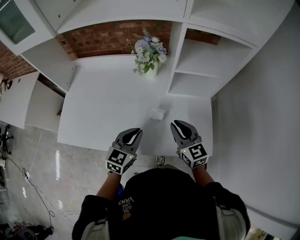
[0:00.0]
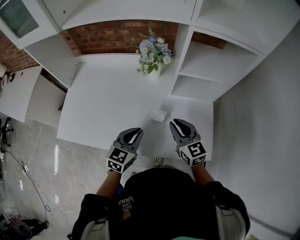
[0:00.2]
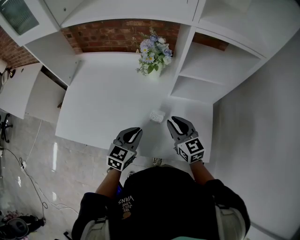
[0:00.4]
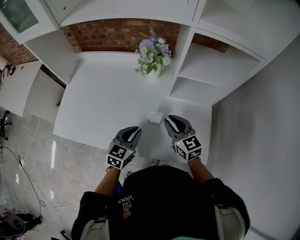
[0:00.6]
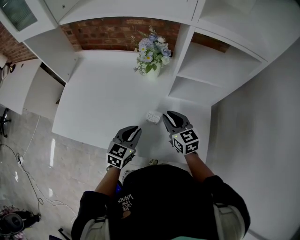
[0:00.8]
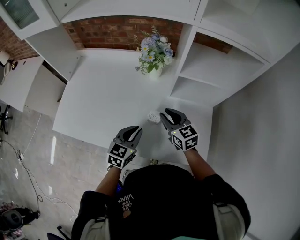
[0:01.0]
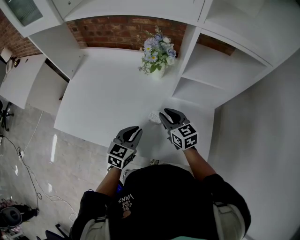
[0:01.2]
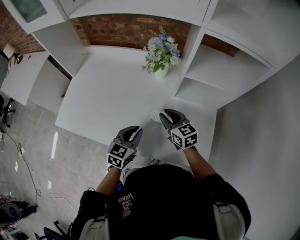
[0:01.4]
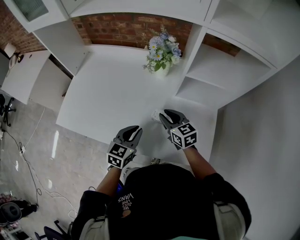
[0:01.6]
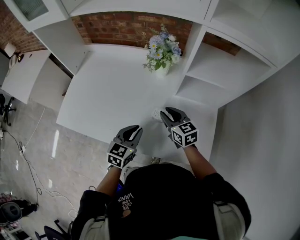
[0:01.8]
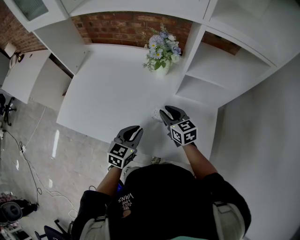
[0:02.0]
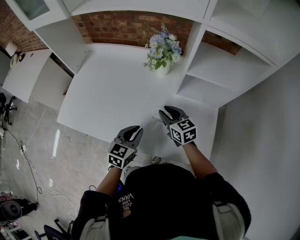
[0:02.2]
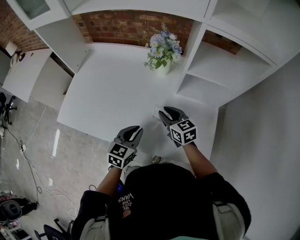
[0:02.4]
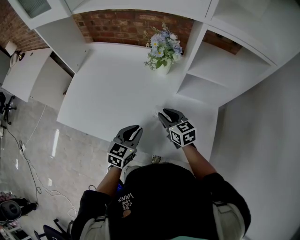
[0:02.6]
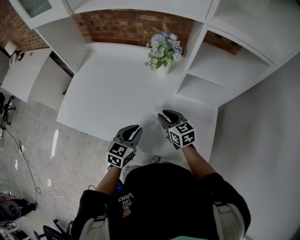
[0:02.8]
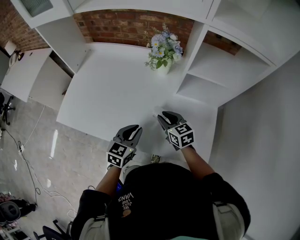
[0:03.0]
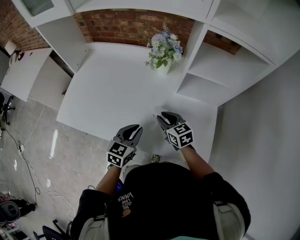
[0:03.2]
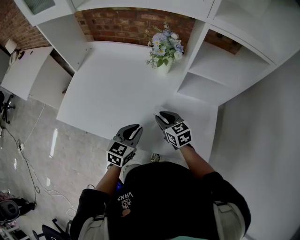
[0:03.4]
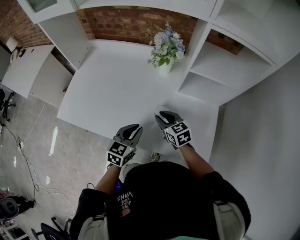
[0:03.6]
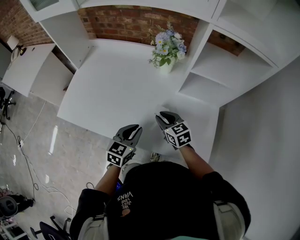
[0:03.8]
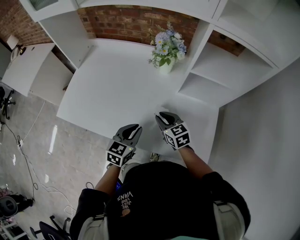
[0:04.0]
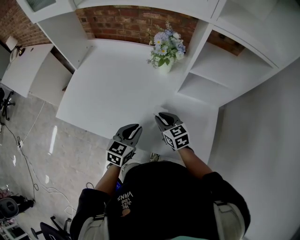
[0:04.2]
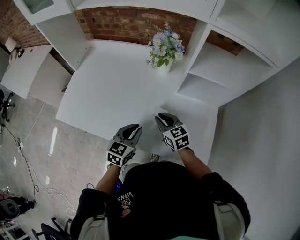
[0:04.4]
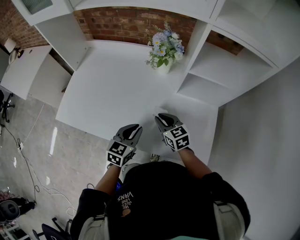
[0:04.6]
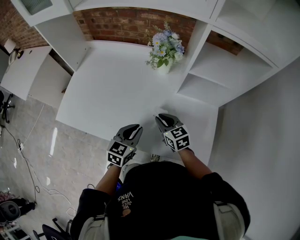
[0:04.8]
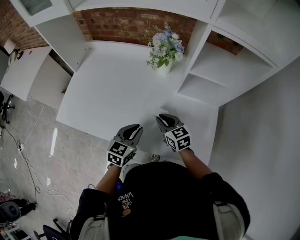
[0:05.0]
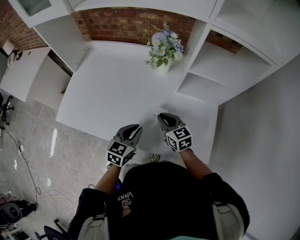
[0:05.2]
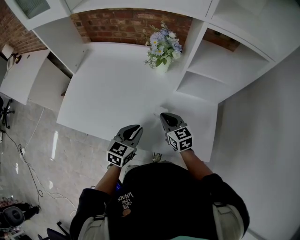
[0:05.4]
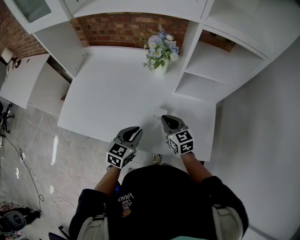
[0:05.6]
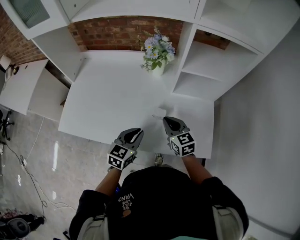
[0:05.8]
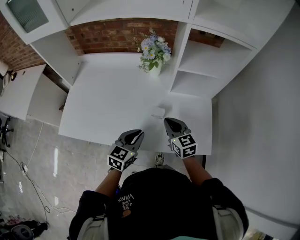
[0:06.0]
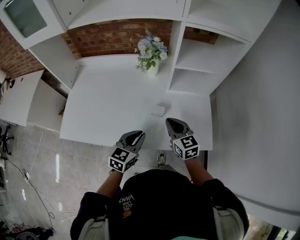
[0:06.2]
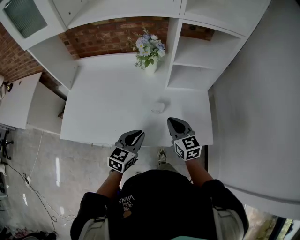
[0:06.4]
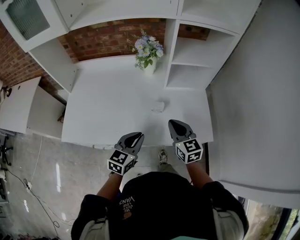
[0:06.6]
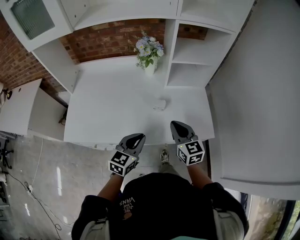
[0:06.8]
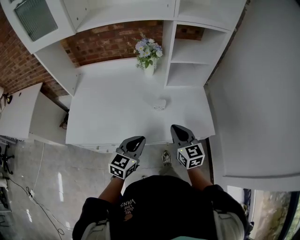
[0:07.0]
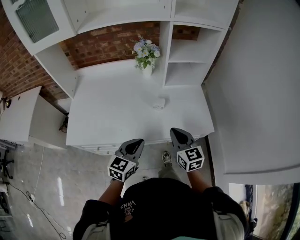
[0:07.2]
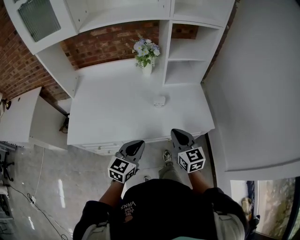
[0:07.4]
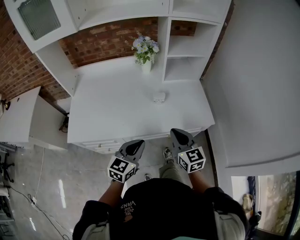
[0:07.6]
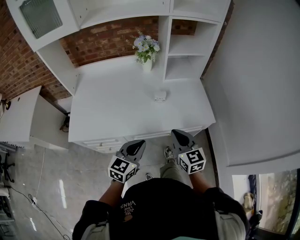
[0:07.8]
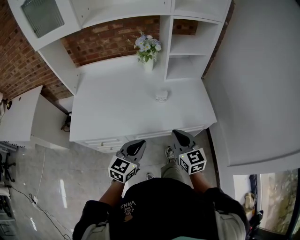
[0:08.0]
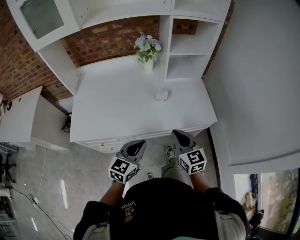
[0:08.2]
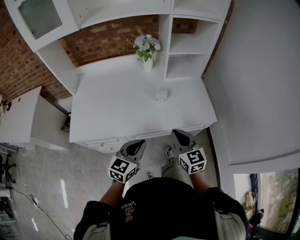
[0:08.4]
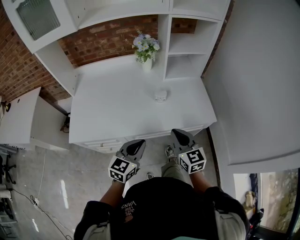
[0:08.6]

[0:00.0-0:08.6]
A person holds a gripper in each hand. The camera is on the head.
0:00.0 to 0:01.4: The right gripper goes approximately 10 cm forward and downward. Meanwhile the left gripper is displaced downward by about 5 cm.
0:01.4 to 0:02.8: The grippers stay close to where they were, moving slightly.
0:02.8 to 0:04.4: The grippers move only a little.
0:04.4 to 0:05.8: The right gripper changes place by some 5 cm.
0:05.8 to 0:07.2: The two grippers go some 15 cm backward. The right gripper rotates about 20 degrees.
0:07.2 to 0:08.6: The right gripper is displaced backward by approximately 5 cm.

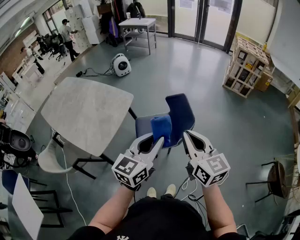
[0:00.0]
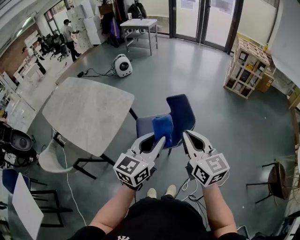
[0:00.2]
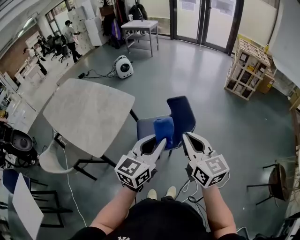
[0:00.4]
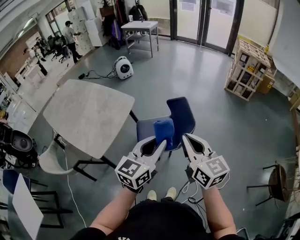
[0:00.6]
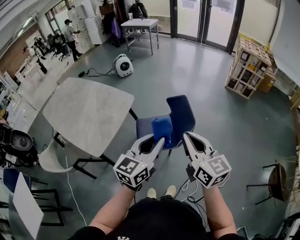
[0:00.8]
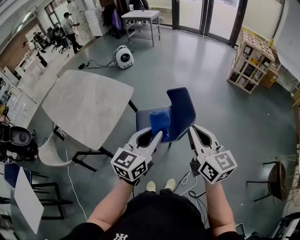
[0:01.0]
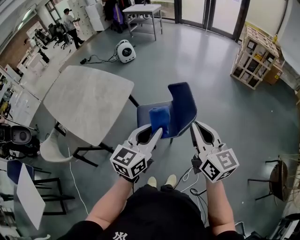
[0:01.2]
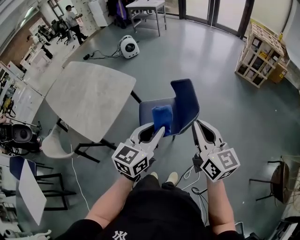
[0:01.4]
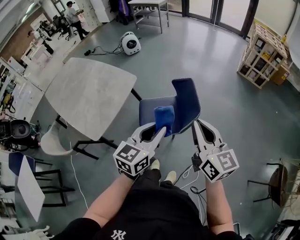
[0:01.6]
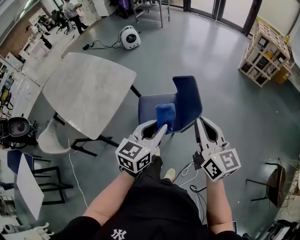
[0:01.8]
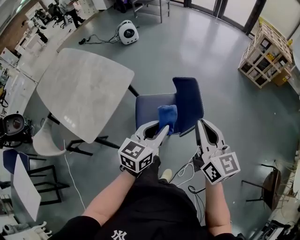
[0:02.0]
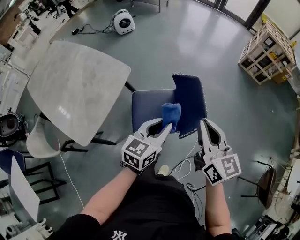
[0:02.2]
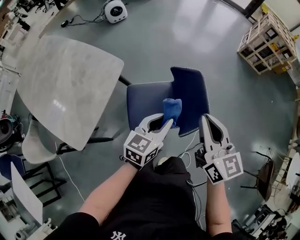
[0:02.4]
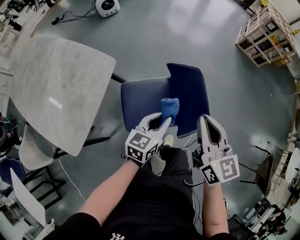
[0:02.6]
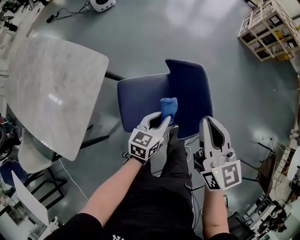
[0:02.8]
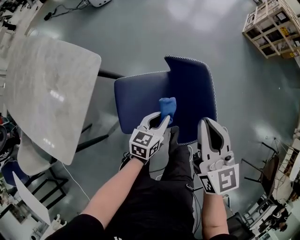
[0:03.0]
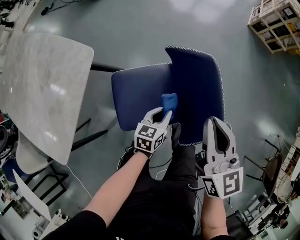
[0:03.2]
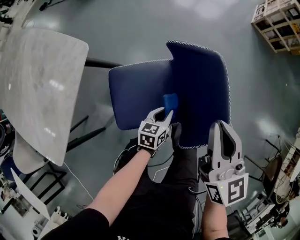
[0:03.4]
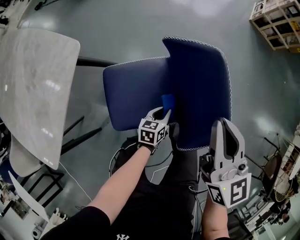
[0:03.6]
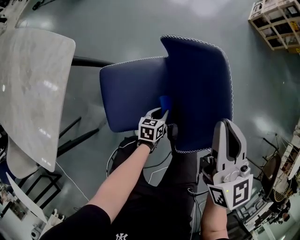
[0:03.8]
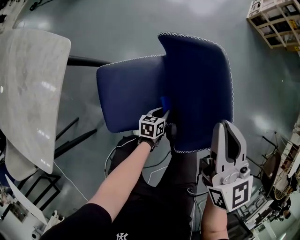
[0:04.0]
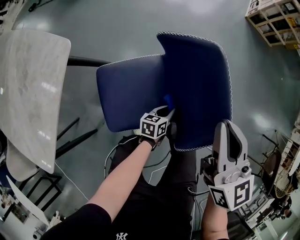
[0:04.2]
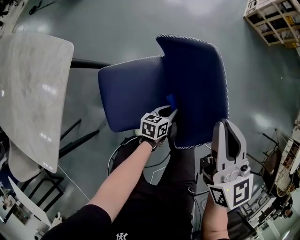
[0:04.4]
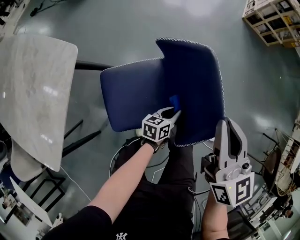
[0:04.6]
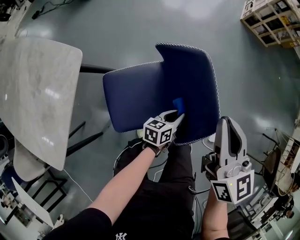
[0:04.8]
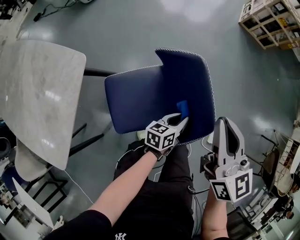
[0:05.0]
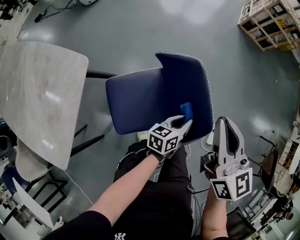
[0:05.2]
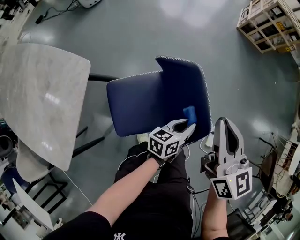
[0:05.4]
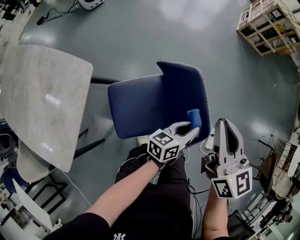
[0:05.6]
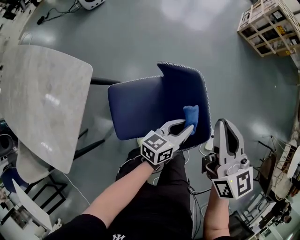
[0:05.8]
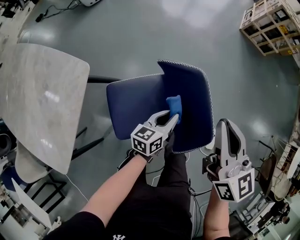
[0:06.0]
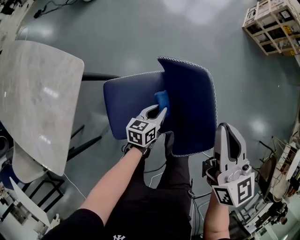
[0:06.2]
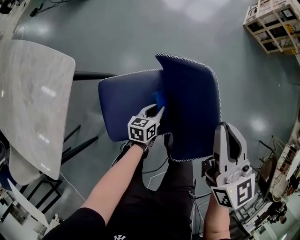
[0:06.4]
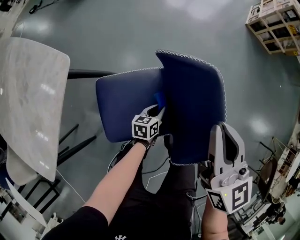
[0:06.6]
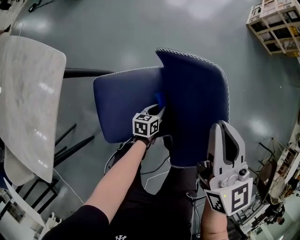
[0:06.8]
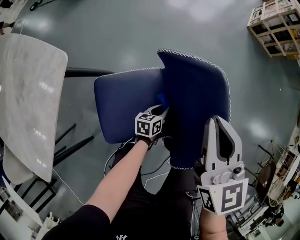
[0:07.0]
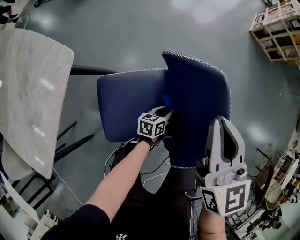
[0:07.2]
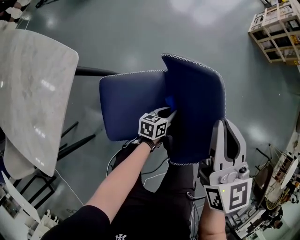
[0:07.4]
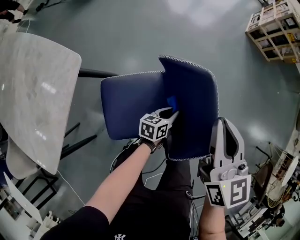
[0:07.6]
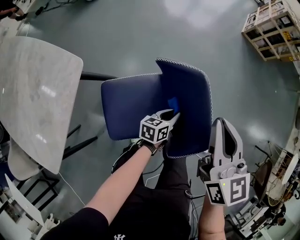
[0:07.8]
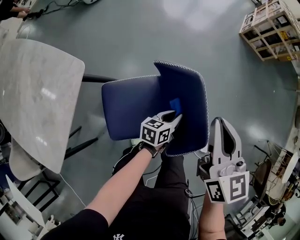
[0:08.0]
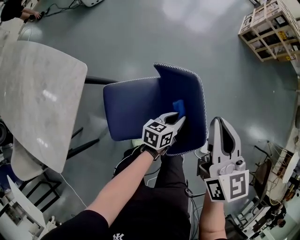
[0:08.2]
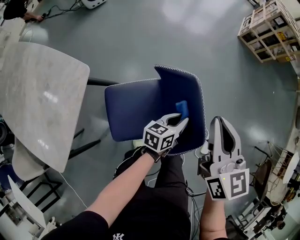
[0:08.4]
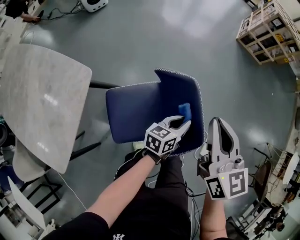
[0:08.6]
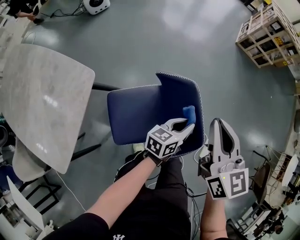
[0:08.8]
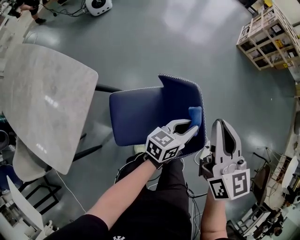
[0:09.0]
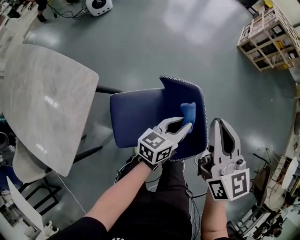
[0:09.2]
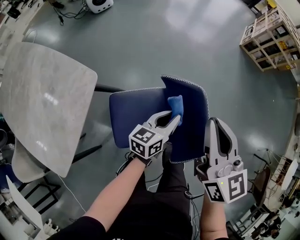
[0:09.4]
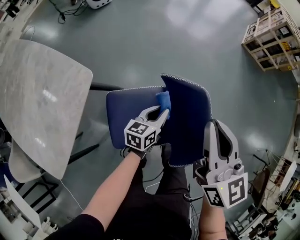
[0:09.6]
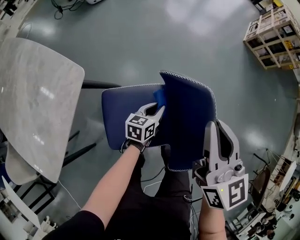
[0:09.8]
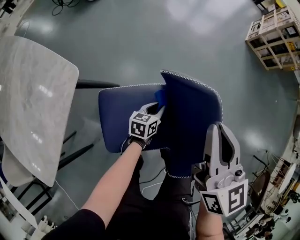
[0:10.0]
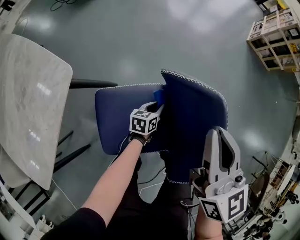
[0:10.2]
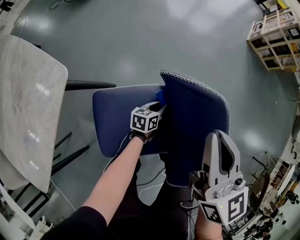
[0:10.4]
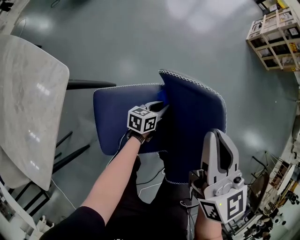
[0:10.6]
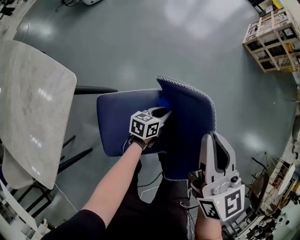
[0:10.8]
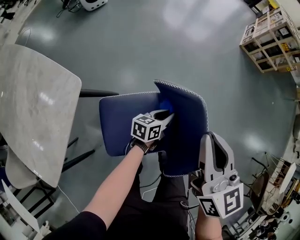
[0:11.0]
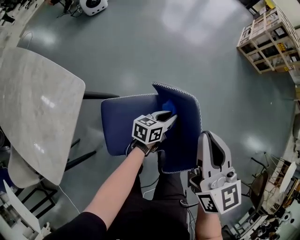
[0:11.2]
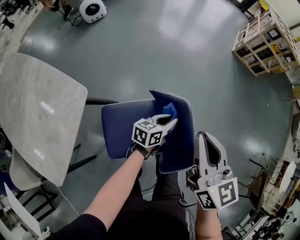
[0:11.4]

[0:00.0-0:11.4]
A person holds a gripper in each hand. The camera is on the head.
0:00.0 to 0:01.4: The left gripper shifts by roughly 5 cm, while the right gripper shifts some 5 cm to the right.
0:01.4 to 0:02.8: The right gripper travels forward and downward by about 30 cm, while the left gripper is displaced downward and forward by about 40 cm, and changes its angle by approximately 20 degrees.
0:02.8 to 0:04.2: The left gripper goes some 30 cm downward, and changes its angle by approximately 20 degrees. The right gripper moves downward, some 15 cm.
0:04.2 to 0:05.6: The right gripper heads upward, covering roughly 10 cm. The left gripper travels upward by some 30 cm, and turns by roughly 20 degrees.
0:05.6 to 0:07.2: The right gripper moves downward and to the left, approximately 10 cm. Meanwhile the left gripper moves downward, roughly 30 cm, and rotates roughly 20 degrees.
0:07.2 to 0:08.6: The right gripper travels upward by roughly 10 cm; the left gripper moves upward, about 25 cm.
0:08.6 to 0:10.0: The right gripper goes approximately 10 cm downward and to the left, while the left gripper is displaced downward and to the left by approximately 25 cm.
0:10.0 to 0:11.4: The right gripper shifts about 10 cm upward. Meanwhile the left gripper moves upward and to the right, roughly 20 cm.

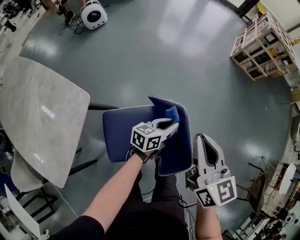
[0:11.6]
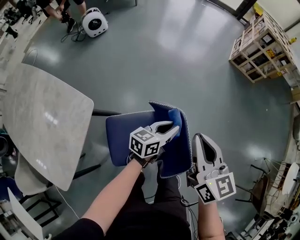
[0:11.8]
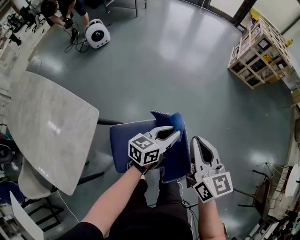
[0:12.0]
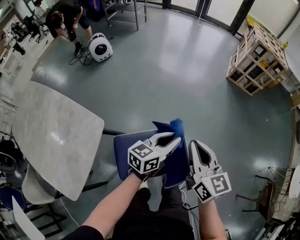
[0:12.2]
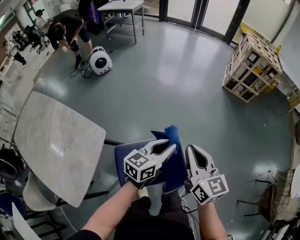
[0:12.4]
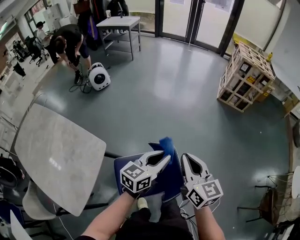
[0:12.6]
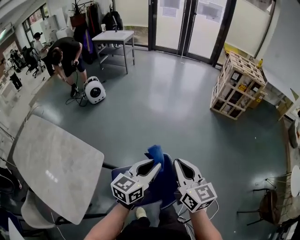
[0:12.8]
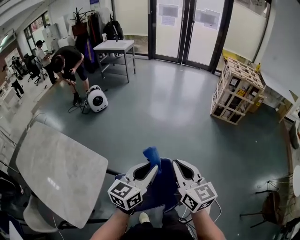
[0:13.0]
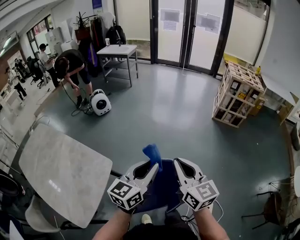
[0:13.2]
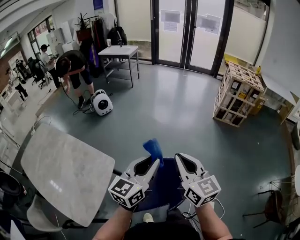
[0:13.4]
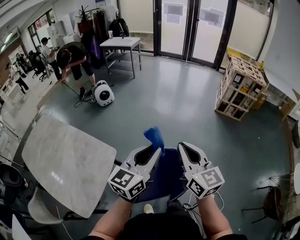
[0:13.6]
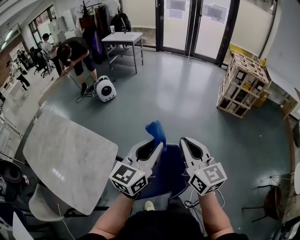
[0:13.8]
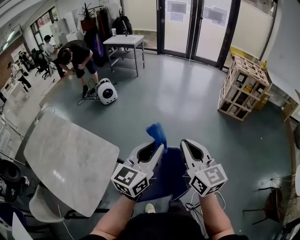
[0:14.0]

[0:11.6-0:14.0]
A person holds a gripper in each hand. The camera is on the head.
0:11.6 to 0:12.8: The left gripper heads upward, covering some 30 cm, and changes its angle by about 30 degrees, while the right gripper travels upward by some 15 cm.
0:12.8 to 0:14.0: Both grippers move upward, about 10 cm.

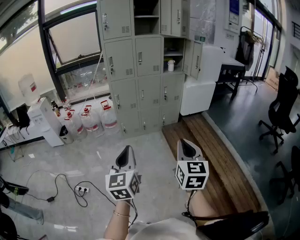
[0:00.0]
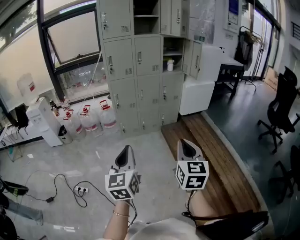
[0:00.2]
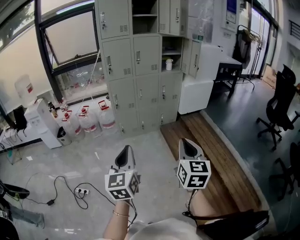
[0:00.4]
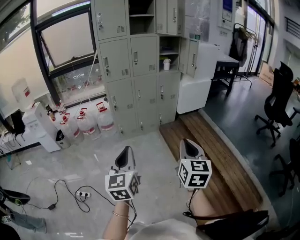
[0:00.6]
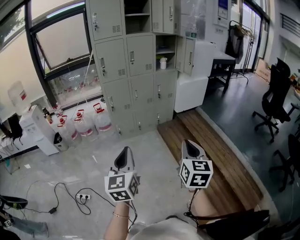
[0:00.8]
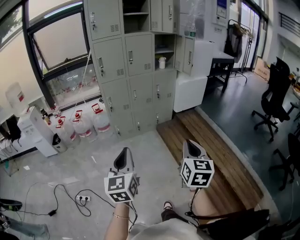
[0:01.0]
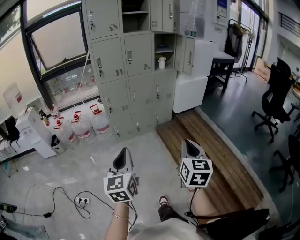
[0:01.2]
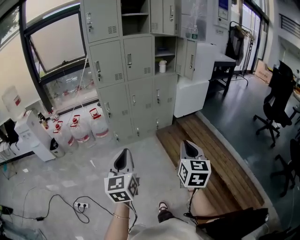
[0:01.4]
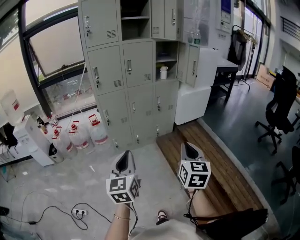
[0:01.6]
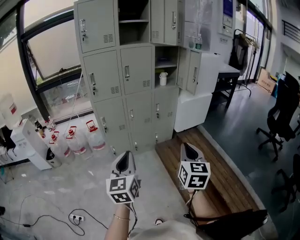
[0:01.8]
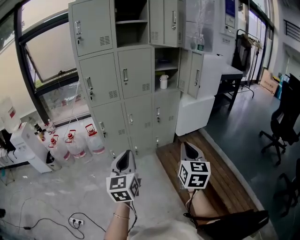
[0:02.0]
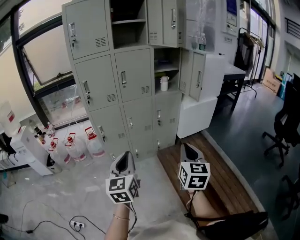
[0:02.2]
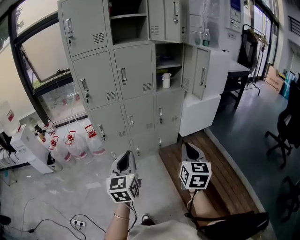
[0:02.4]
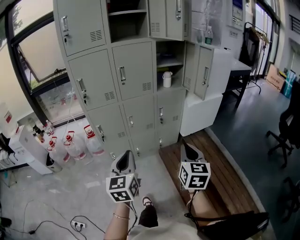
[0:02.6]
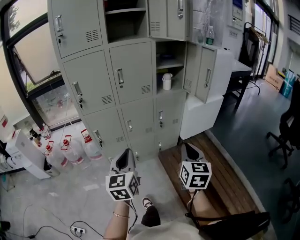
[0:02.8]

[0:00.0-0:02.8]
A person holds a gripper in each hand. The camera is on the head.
0:00.0 to 0:01.4: The two grippers go about 10 cm forward.
0:01.4 to 0:02.8: The pair of grippers is taken forward, roughly 40 cm.
